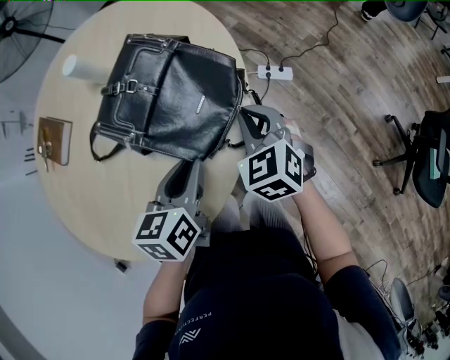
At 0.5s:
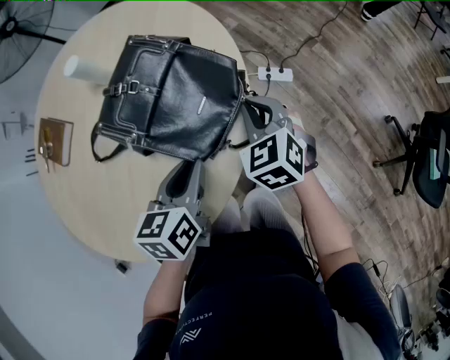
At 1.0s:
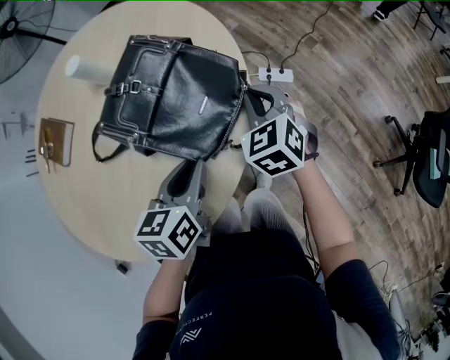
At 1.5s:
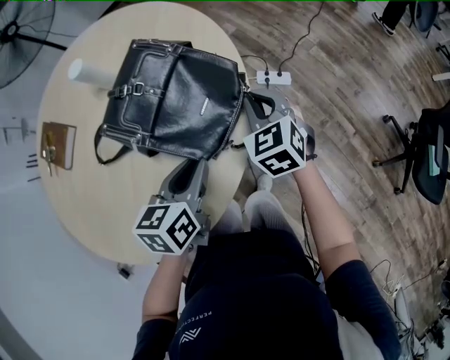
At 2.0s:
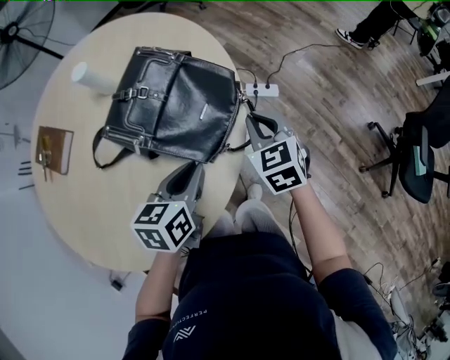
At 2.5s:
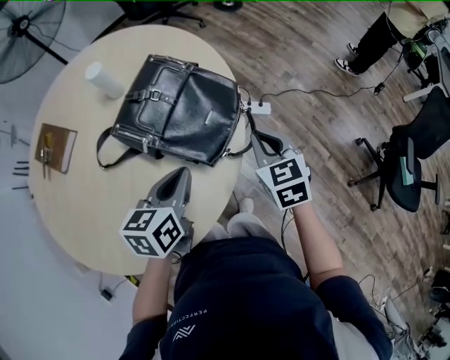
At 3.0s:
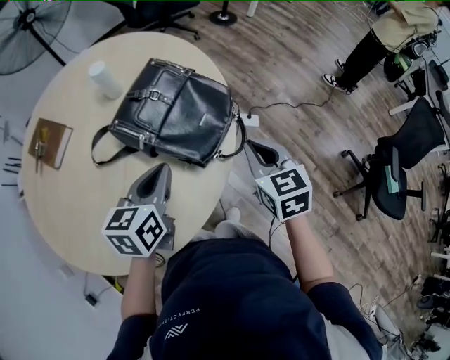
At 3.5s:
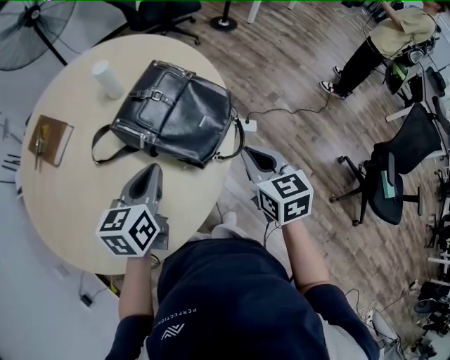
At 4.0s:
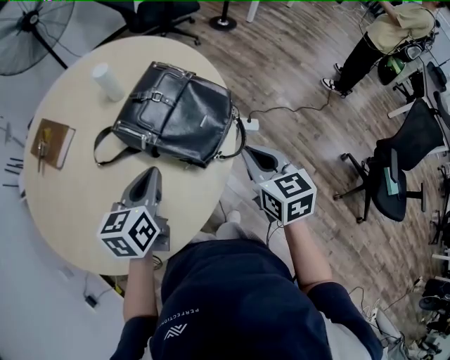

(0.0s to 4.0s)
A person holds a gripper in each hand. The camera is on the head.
0.0s - 2.0s: The grippers move only a little.
2.0s - 4.0s: The right gripper heads backward and upward, covering about 10 cm. Meanwhile the left gripper heads to the left and upward, covering roughly 10 cm.

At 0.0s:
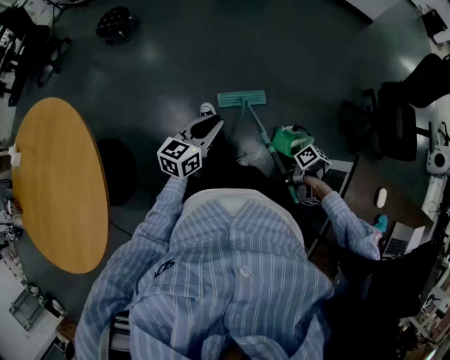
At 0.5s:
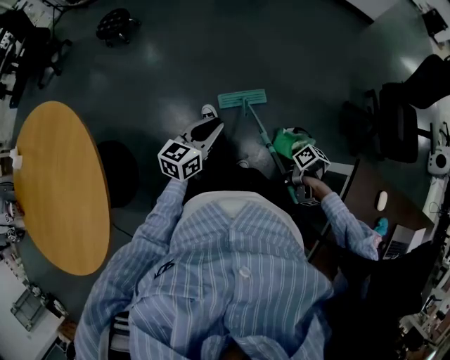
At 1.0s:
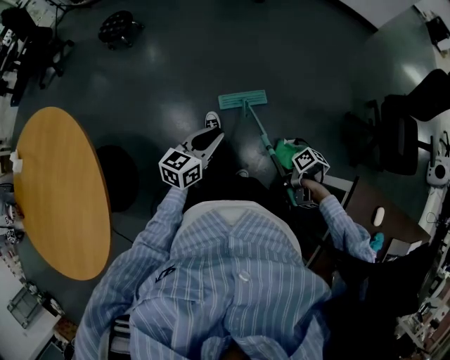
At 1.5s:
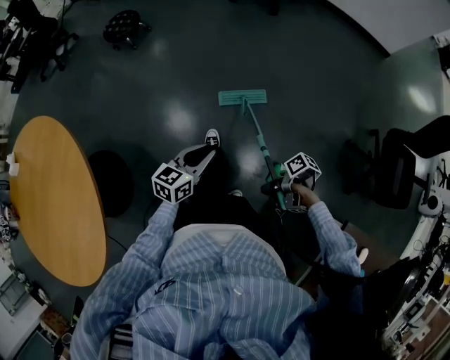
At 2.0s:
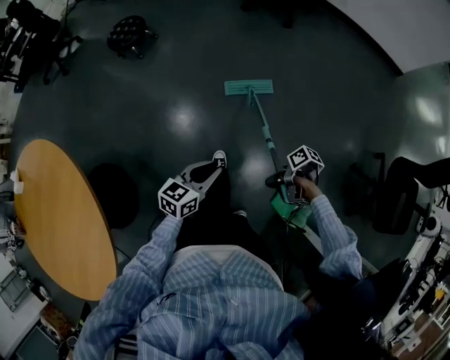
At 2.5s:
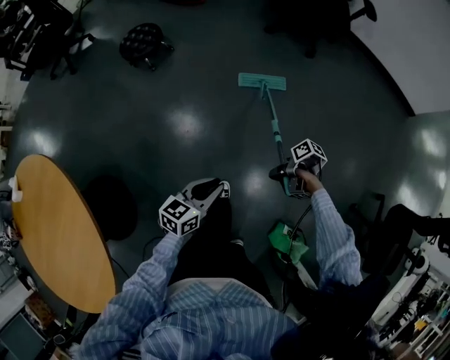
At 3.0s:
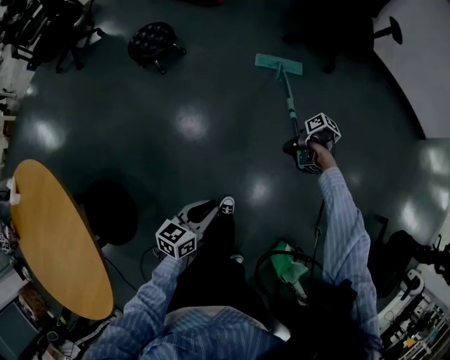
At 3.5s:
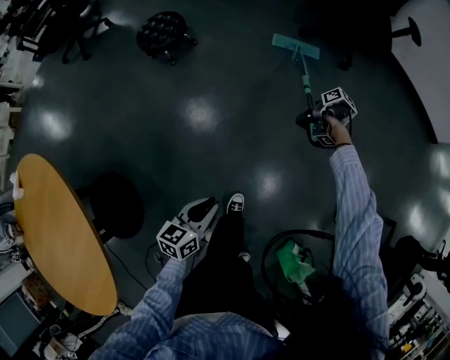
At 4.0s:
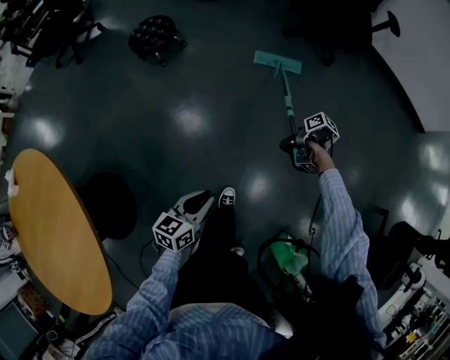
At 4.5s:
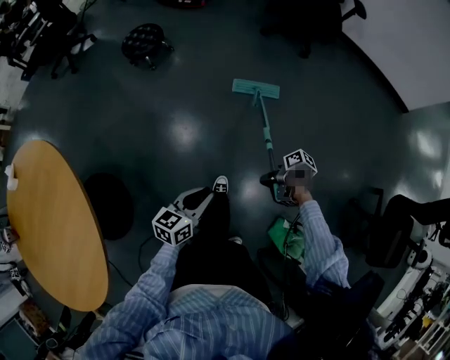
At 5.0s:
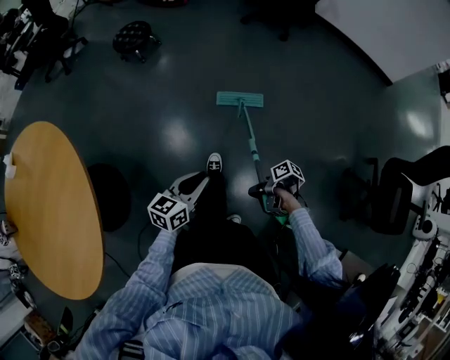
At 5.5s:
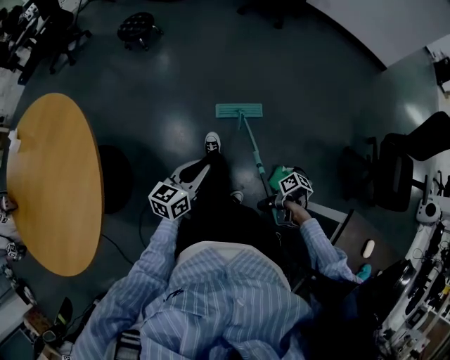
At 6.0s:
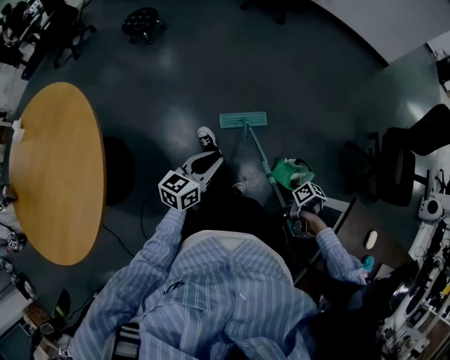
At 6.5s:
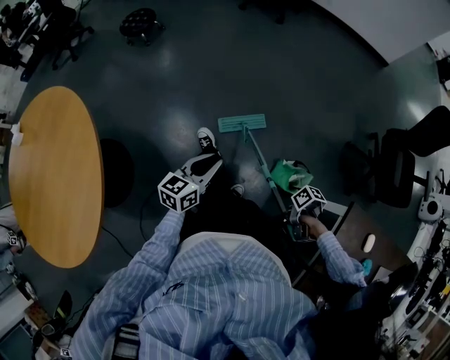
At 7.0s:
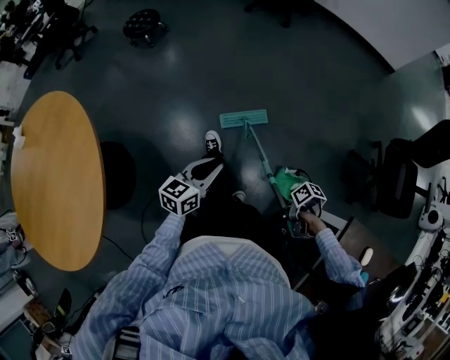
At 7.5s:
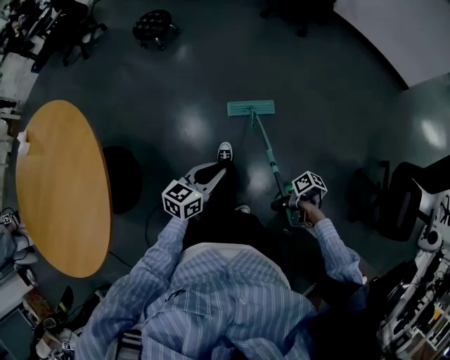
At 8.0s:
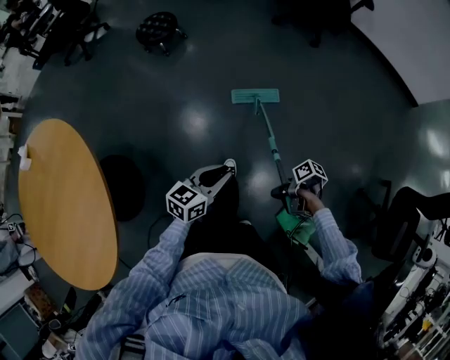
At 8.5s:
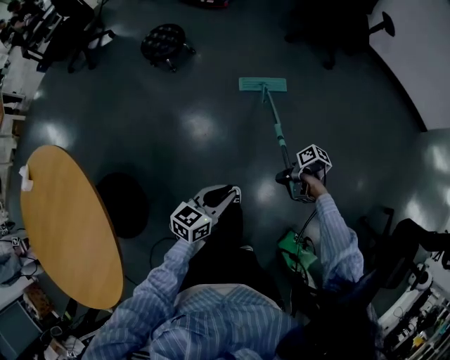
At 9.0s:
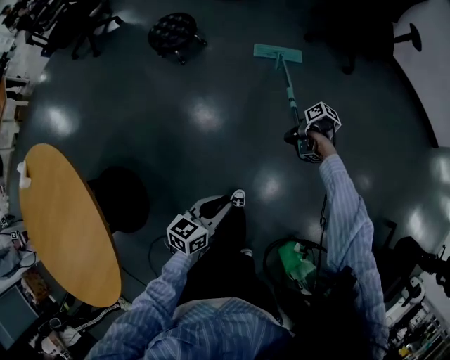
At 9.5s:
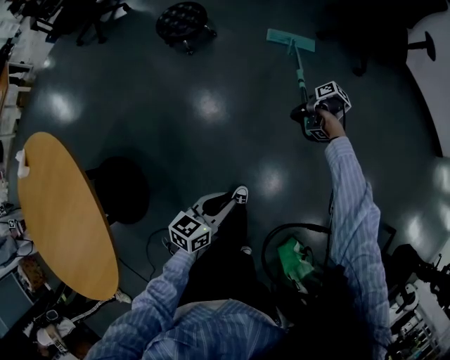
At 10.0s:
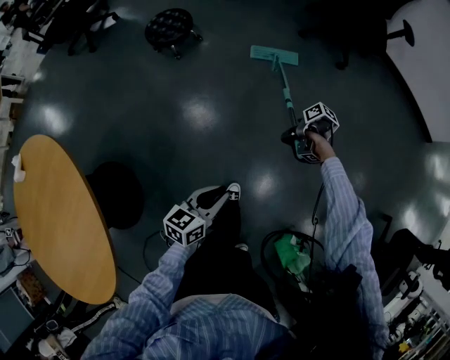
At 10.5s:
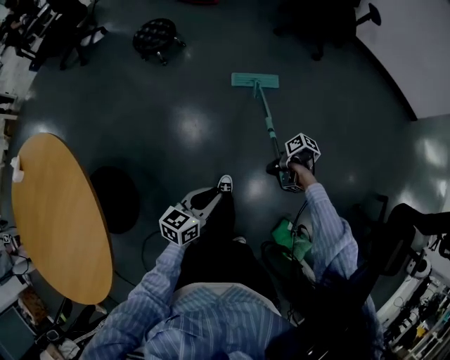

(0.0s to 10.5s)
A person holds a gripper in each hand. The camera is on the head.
0.0s - 2.0s: The left gripper ends up about 25 cm from where it was.
2.0s - 4.0s: The left gripper ends up some 20 cm from where it was.
4.0s - 6.5s: The left gripper moves some 40 cm.
6.5s - 8.5s: The left gripper changes place by about 40 cm.
8.5s - 10.5s: The left gripper shifts by roughly 10 cm.

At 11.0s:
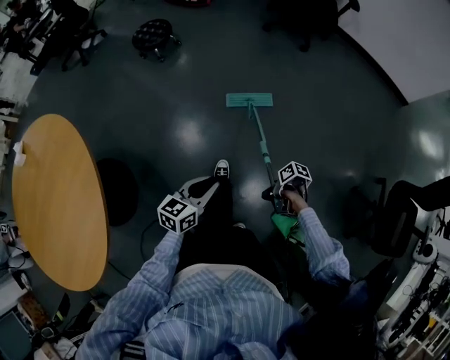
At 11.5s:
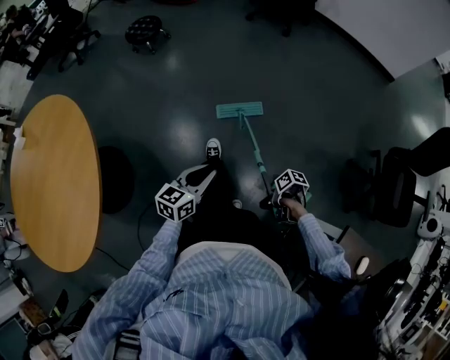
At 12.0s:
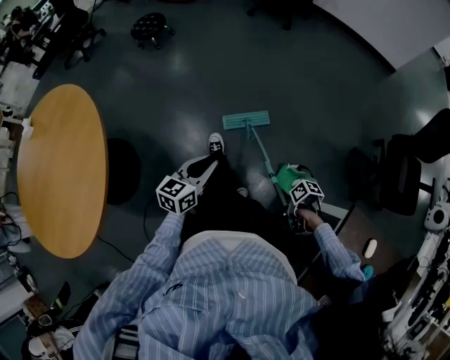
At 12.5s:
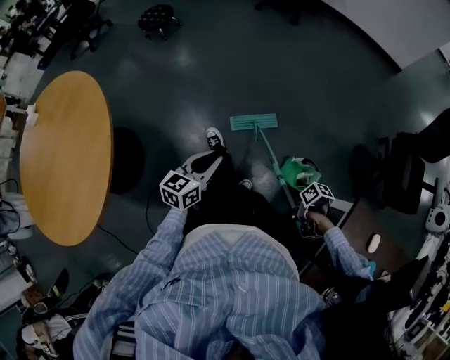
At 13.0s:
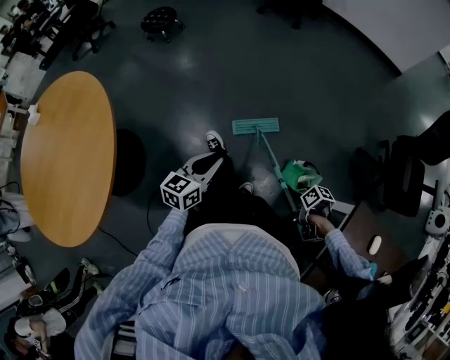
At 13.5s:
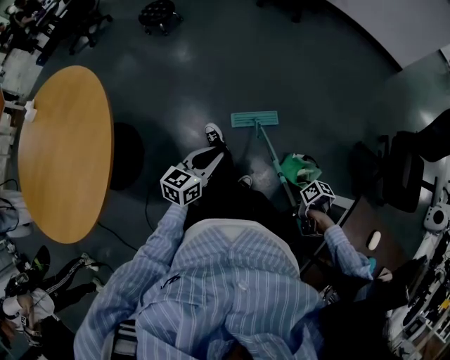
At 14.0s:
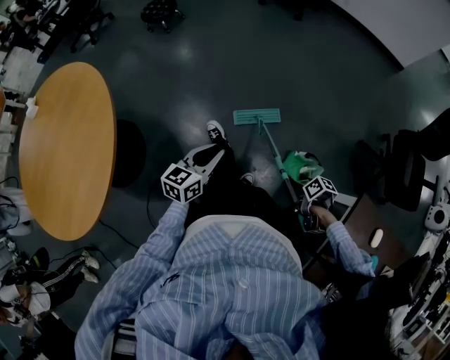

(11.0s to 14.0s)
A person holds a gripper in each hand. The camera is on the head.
11.0s - 12.5s: The left gripper ends up approximately 25 cm from where it was.

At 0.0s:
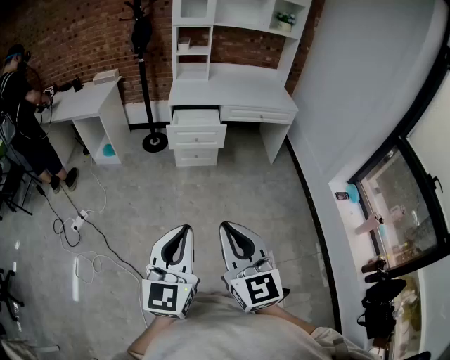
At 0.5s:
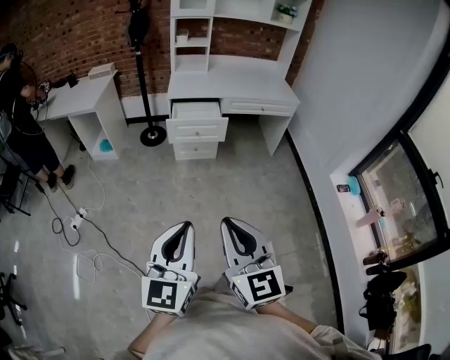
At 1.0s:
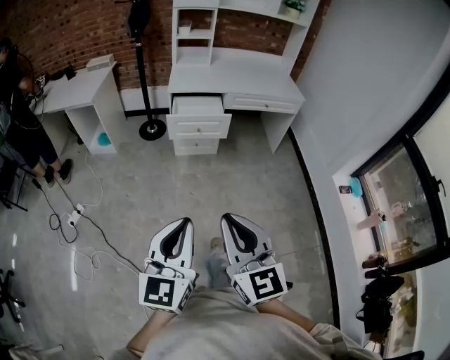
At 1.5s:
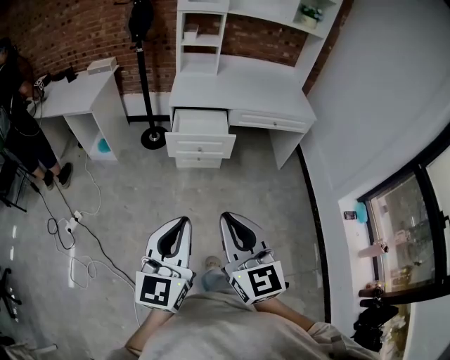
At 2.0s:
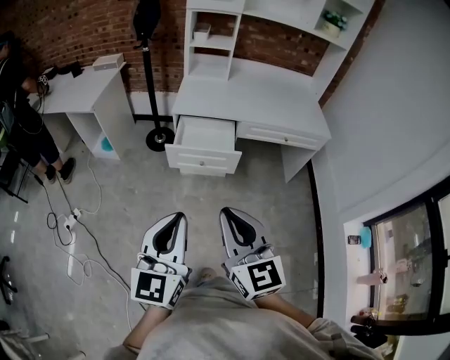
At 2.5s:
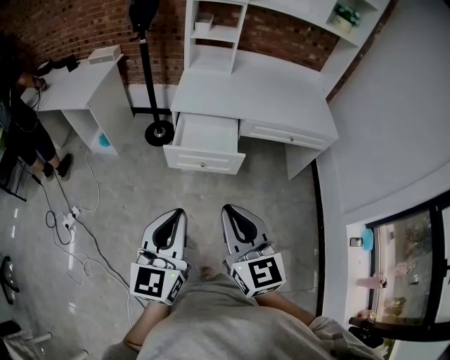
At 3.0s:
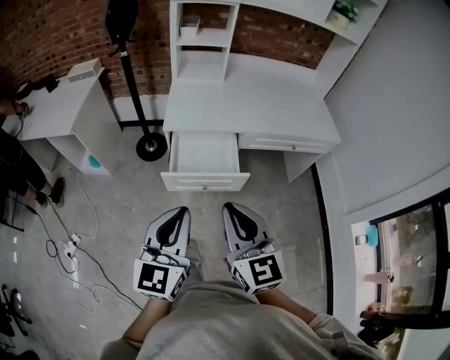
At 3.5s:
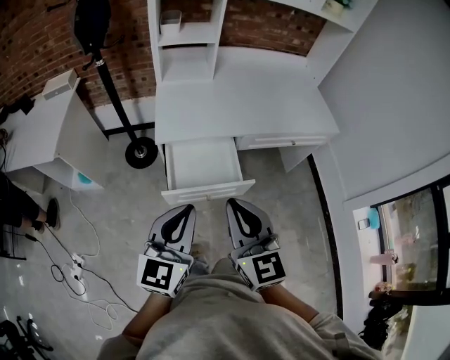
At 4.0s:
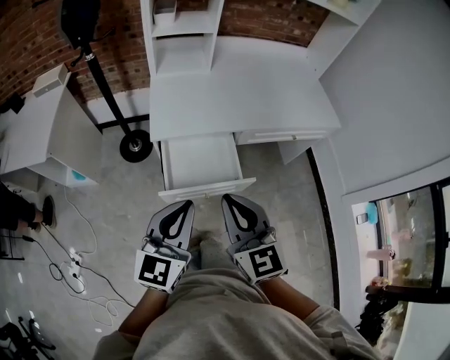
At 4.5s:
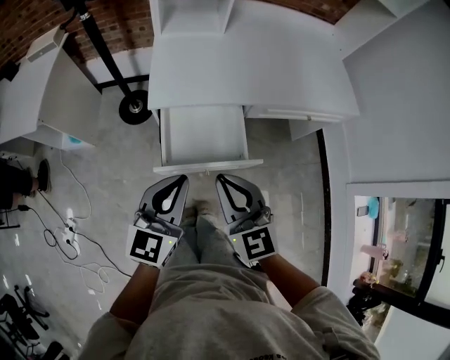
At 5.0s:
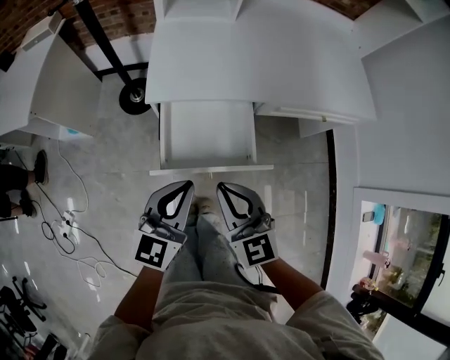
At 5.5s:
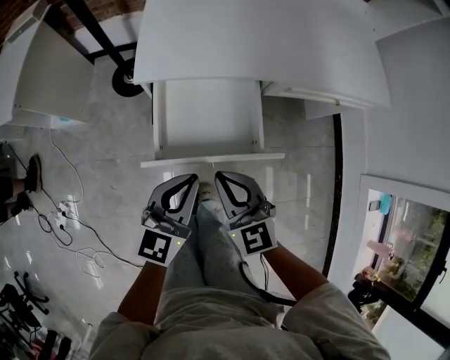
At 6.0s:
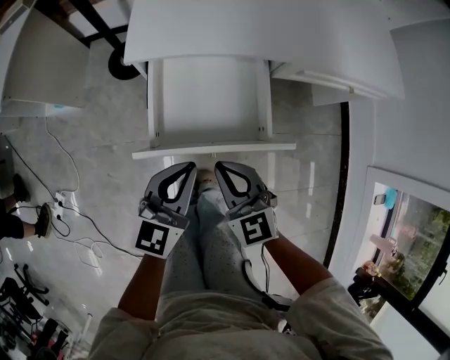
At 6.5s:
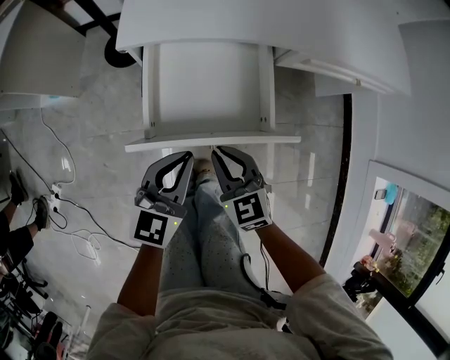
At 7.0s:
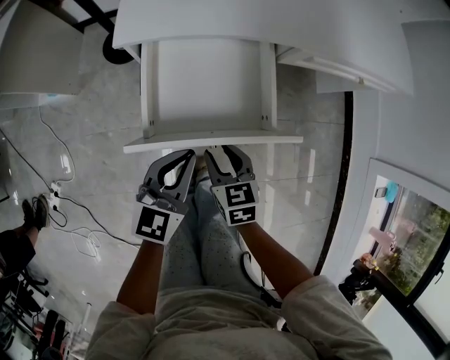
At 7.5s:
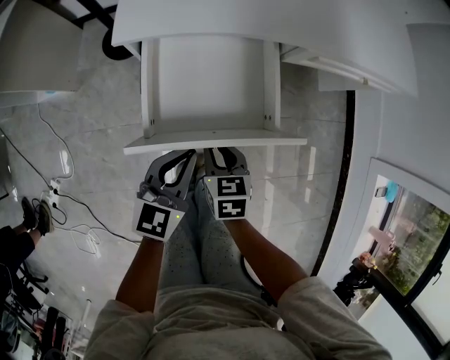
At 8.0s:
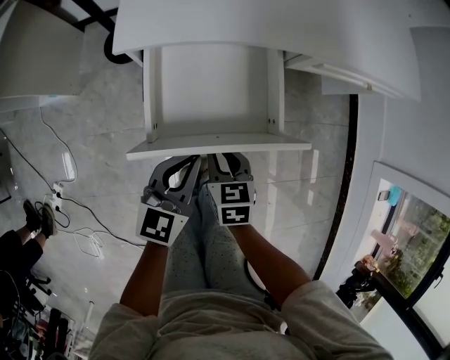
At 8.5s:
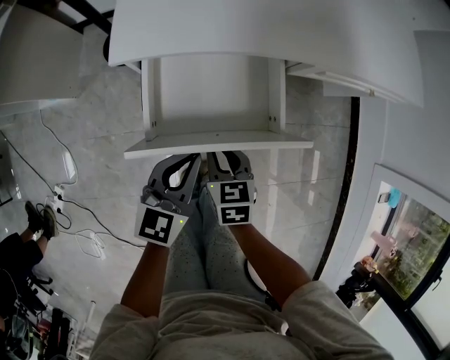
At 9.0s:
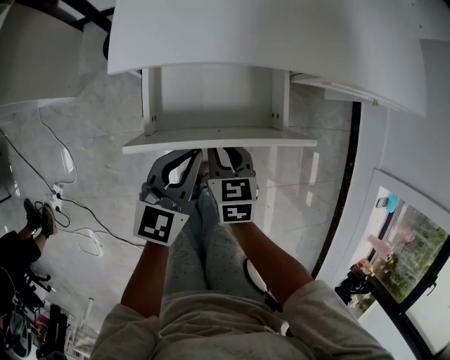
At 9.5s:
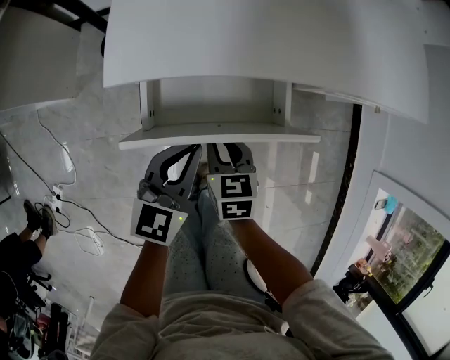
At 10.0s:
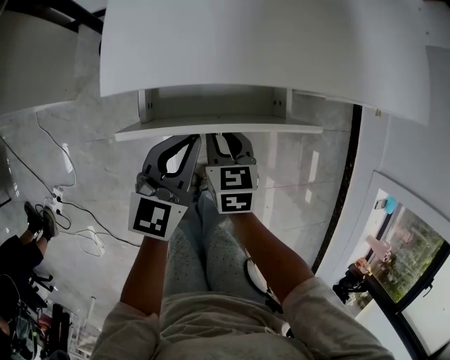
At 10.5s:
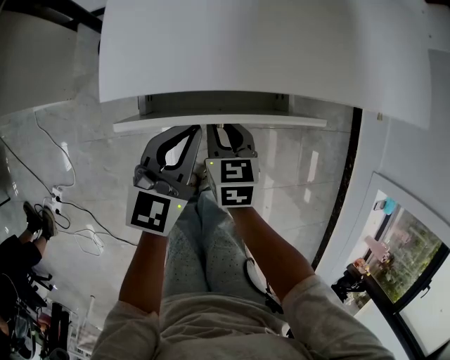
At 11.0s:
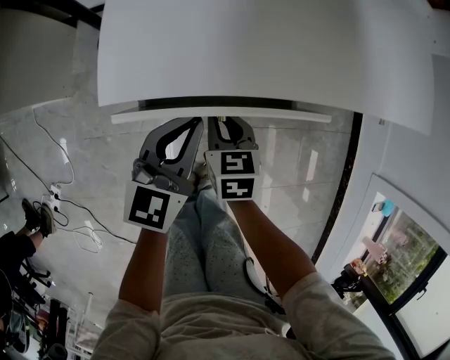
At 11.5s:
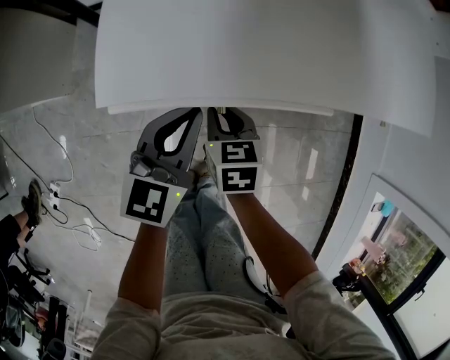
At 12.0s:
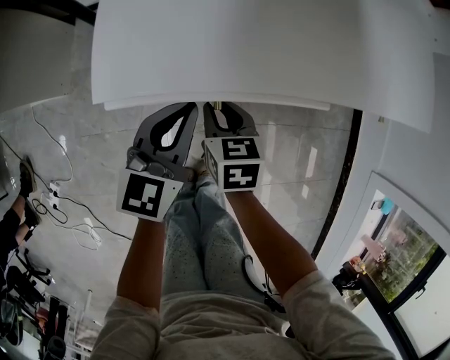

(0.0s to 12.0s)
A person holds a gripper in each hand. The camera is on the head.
0.0s - 2.0s: The two grippers go some 40 cm forward.
2.0s - 4.0s: The grippers both shift forward by some 35 cm. The left gripper turns by approximately 20 degrees.
4.0s - 6.0s: Both grippers travel together downward, about 30 cm. The right gripper rotates some 30 degrees.
6.0s - 8.0s: The right gripper moves downward, some 15 cm, and changes its angle by roughly 40 degrees; the left gripper is displaced downward by some 5 cm.
8.0s - 10.0s: The grippers both shift forward by some 15 cm.
10.0s - 12.0s: The two grippers go approximately 5 cm forward.
